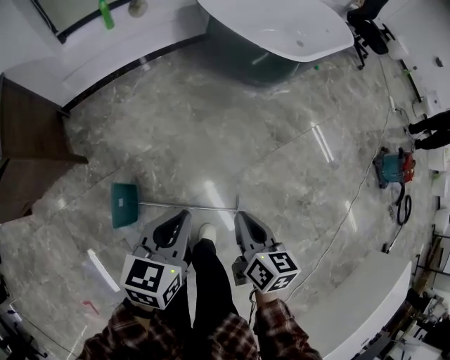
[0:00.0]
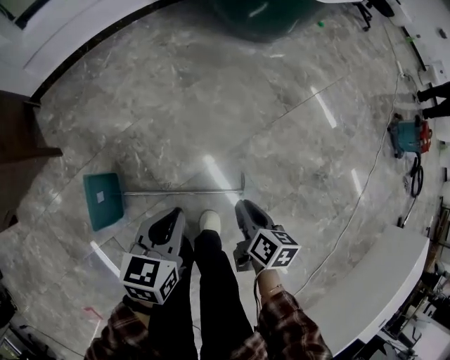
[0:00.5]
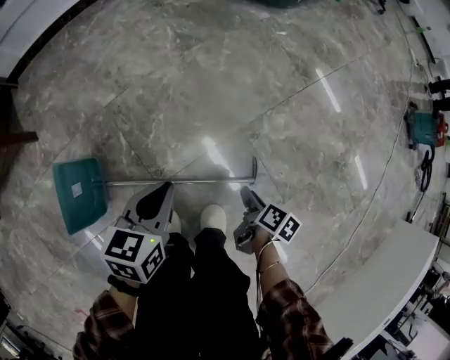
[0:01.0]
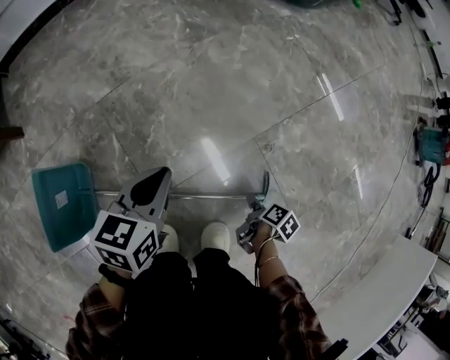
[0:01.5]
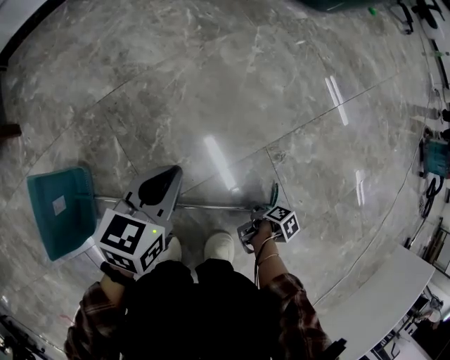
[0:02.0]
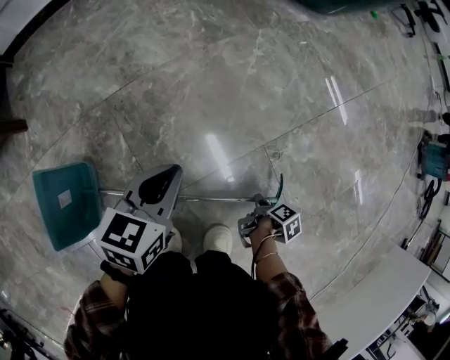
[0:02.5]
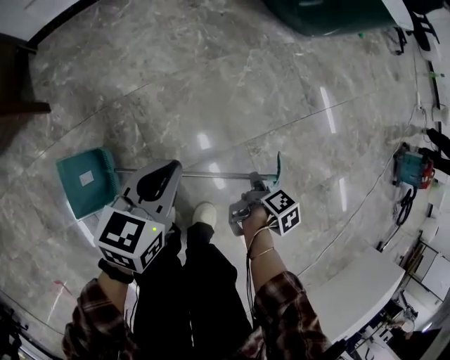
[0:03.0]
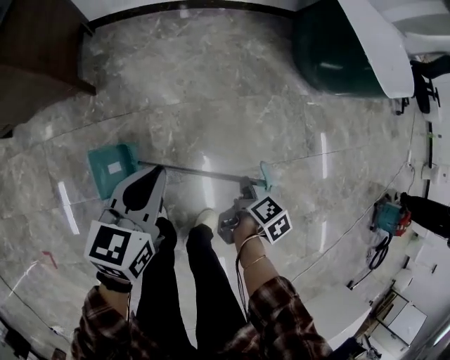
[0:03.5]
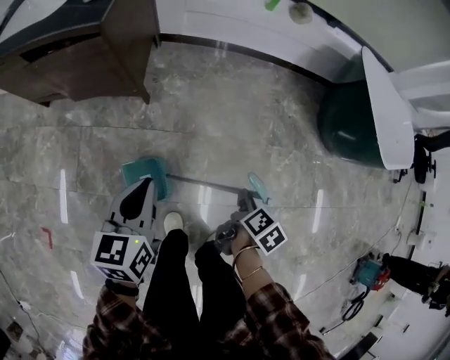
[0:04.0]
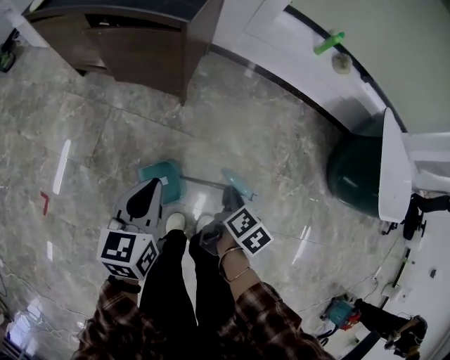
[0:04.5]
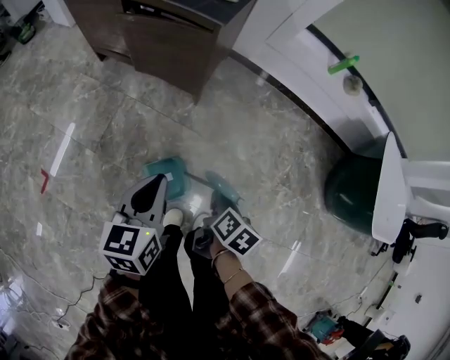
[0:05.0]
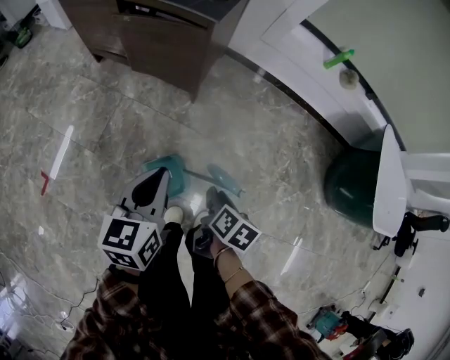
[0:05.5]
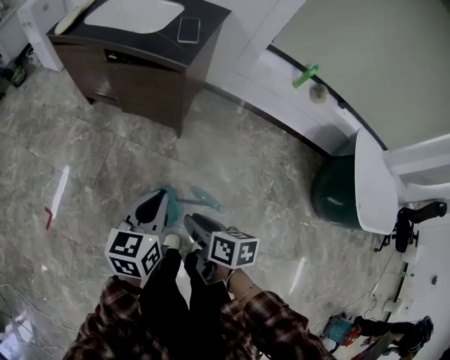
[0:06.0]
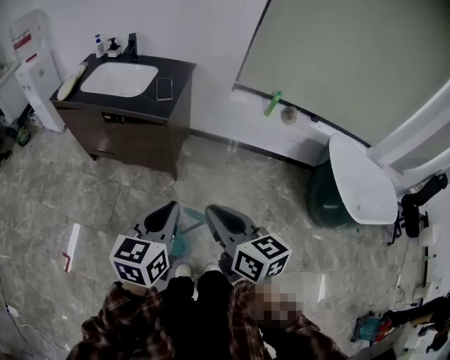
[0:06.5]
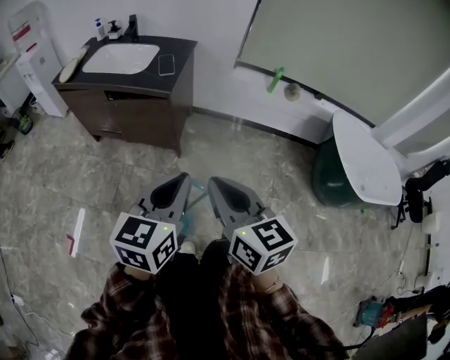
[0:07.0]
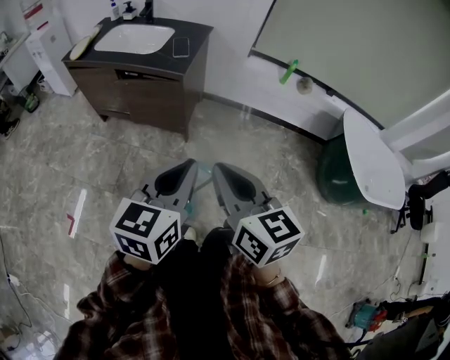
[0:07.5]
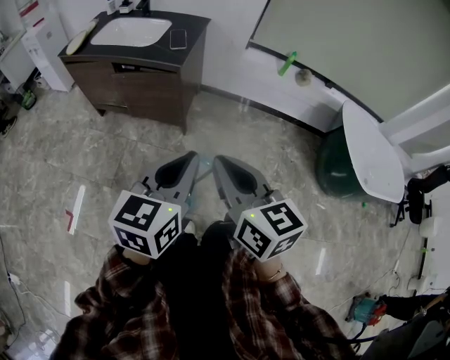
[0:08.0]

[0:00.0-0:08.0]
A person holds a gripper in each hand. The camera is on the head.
0:00.0 to 0:02.0: Both grippers travel together downward, roughly 70 cm. The right gripper tips its fingers downward by some 40 degrees, and opens its fingers.
0:02.0 to 0:04.0: The grippers both shift upward by approximately 50 cm. The right gripper twists approximately 50 degrees counterclockwise, seen from behind; the left gripper turns by about 50 degrees.
0:04.0 to 0:06.0: The left gripper travels upward by about 10 cm. The right gripper ends up approximately 35 cm from where it was, and changes its angle by some 60 degrees.
0:06.0 to 0:08.0: The left gripper goes approximately 25 cm upward and backward; the right gripper travels upward by some 30 cm, rotates approximately 40 degrees, and closes up.

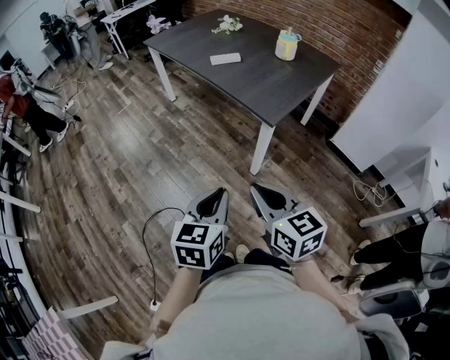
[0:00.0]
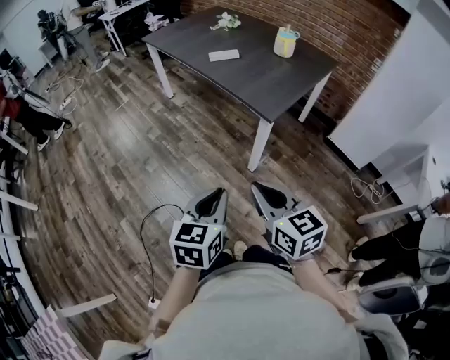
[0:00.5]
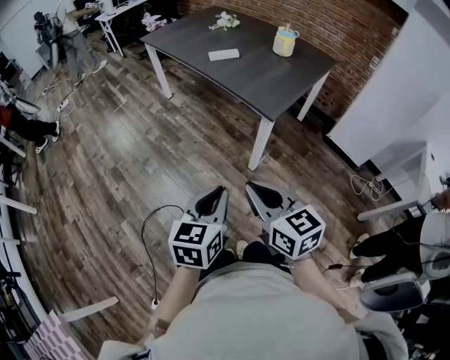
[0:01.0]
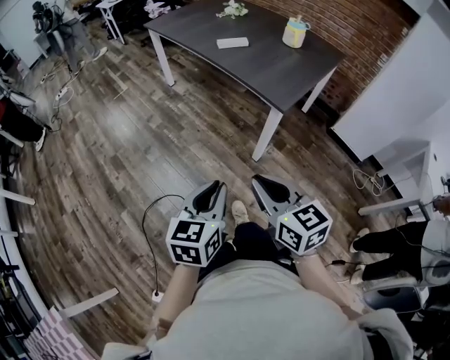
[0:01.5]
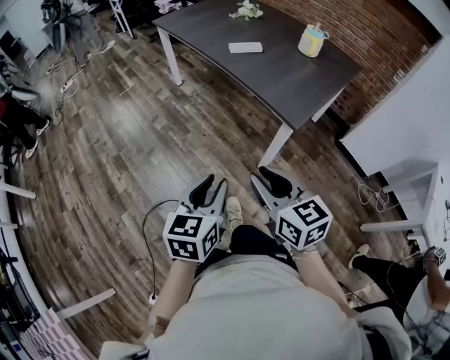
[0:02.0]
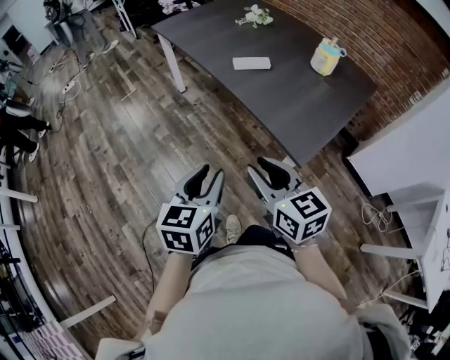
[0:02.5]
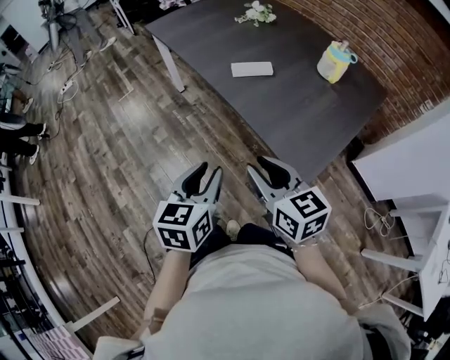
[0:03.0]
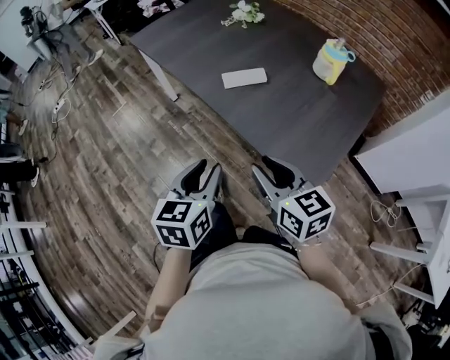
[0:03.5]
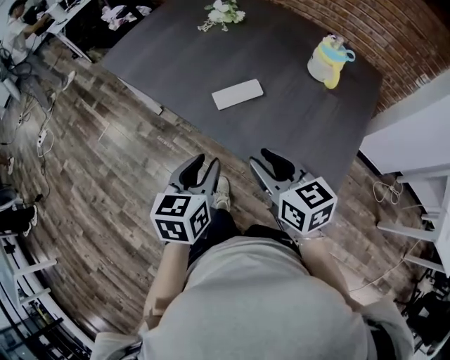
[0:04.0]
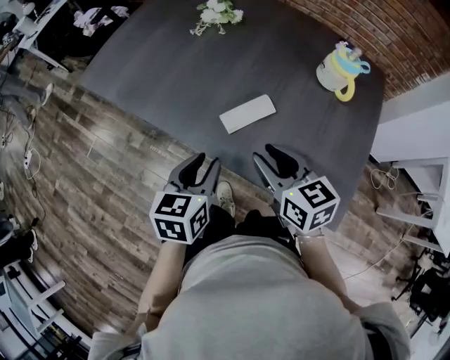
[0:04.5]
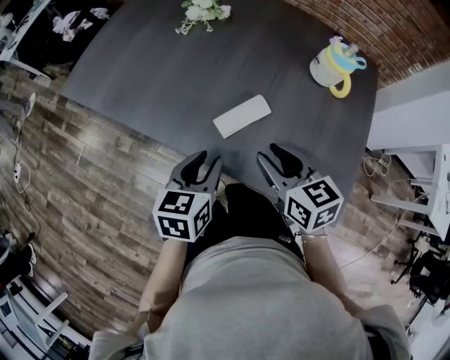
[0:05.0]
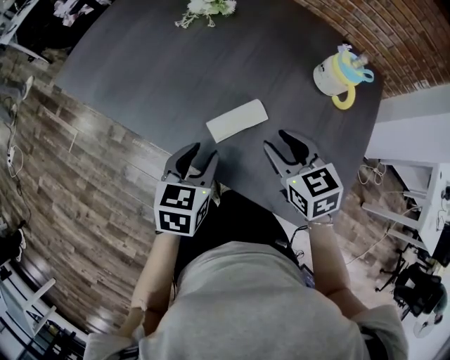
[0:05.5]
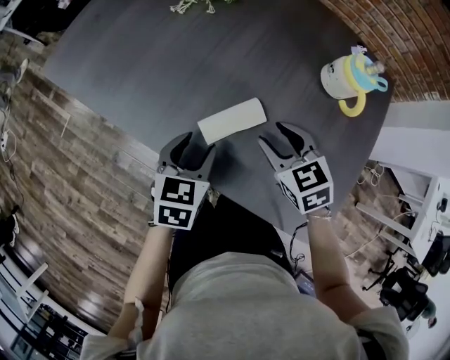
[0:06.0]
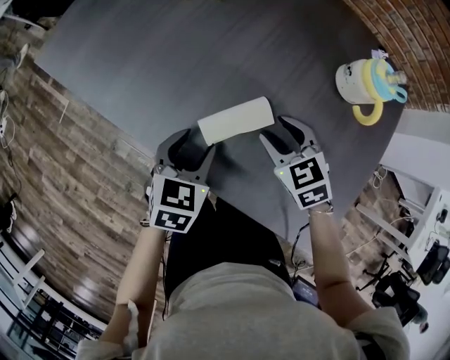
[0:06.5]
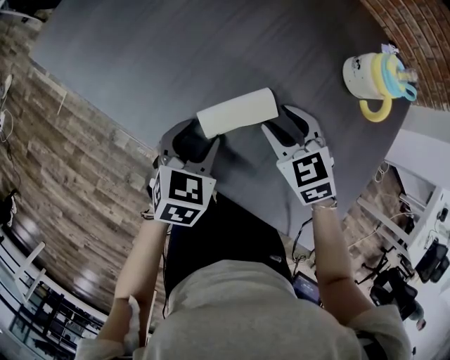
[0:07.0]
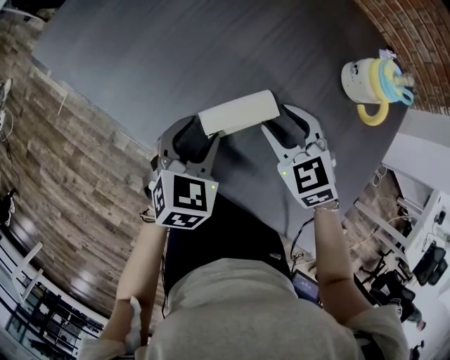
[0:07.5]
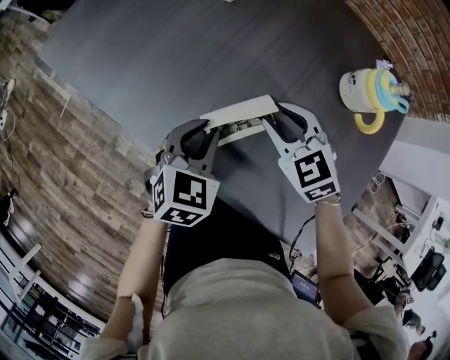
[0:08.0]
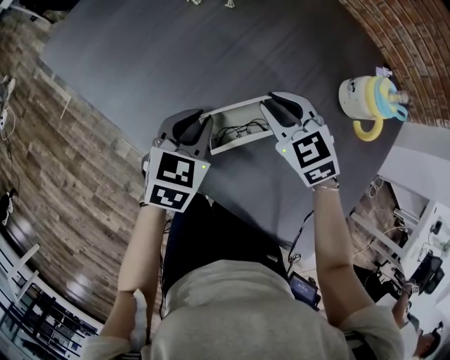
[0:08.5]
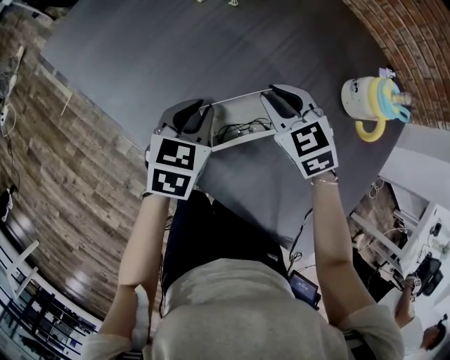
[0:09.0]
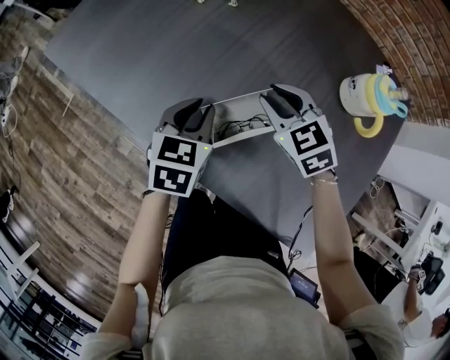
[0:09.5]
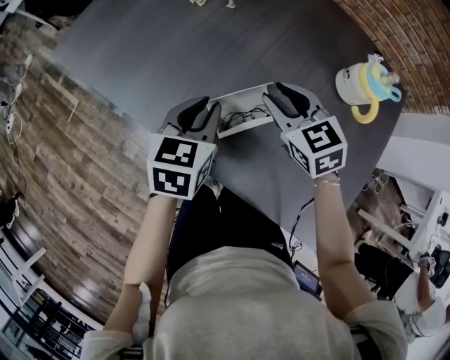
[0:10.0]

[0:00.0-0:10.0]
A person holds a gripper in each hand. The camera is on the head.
0:00.0 to 0:02.0: The two grippers go roughly 10 cm forward and to the left. The right gripper opens up.
0:02.0 to 0:04.0: The pair of grippers is taken forward, approximately 50 cm.
0:04.0 to 0:06.0: The two grippers go about 25 cm forward and downward. The left gripper opens; the right gripper swivels some 30 degrees.
0:06.0 to 0:08.0: The left gripper closes its fingers. The right gripper goes some 5 cm forward.
0:08.0 to 0:10.0: The left gripper ends up approximately 5 cm from where it was, and rotates some 20 degrees.

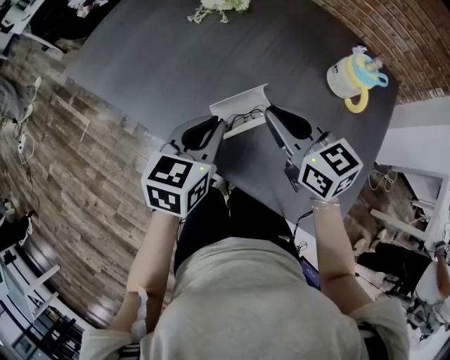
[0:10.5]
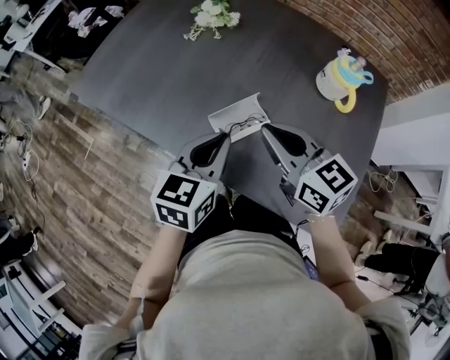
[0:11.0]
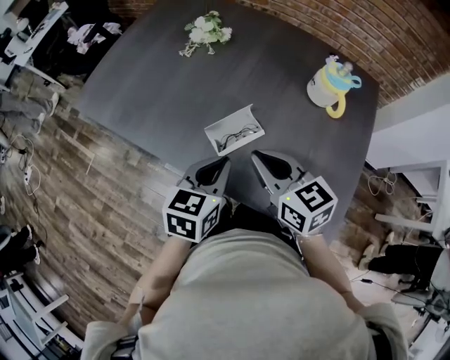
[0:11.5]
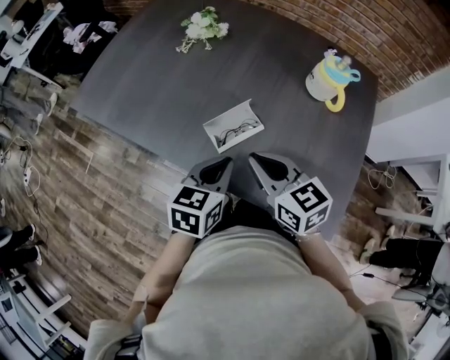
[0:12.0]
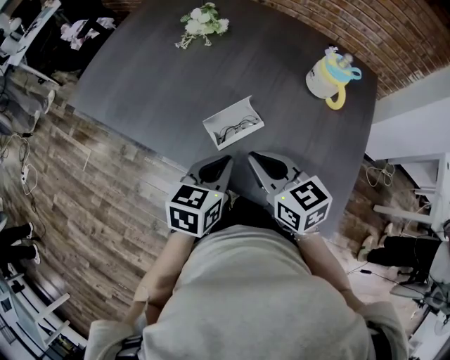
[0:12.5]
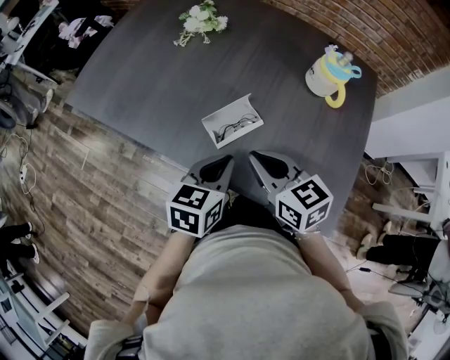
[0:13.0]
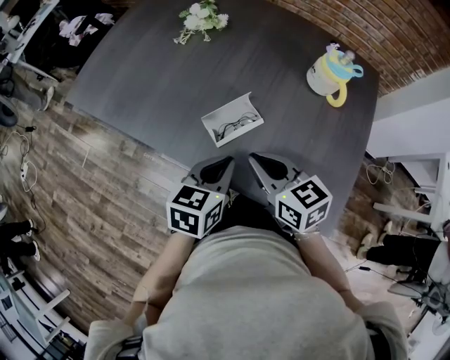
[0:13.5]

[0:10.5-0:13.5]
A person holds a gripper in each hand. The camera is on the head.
0:10.5 to 0:12.0: Both grippers travel together backward, about 5 cm.
0:12.0 to 0:13.5: There are only small adjustments of the grippers.

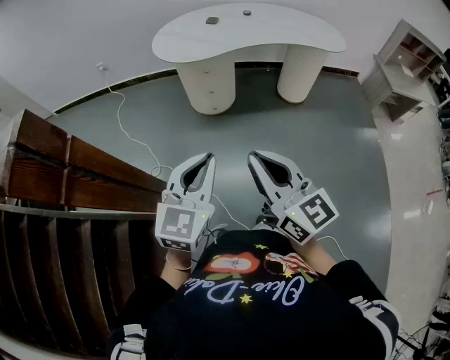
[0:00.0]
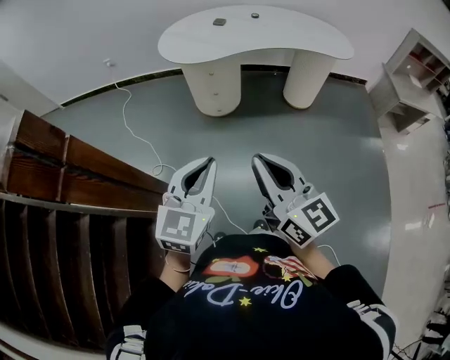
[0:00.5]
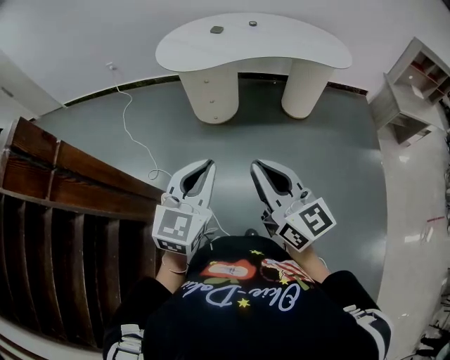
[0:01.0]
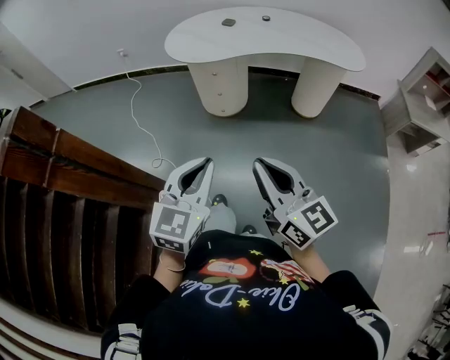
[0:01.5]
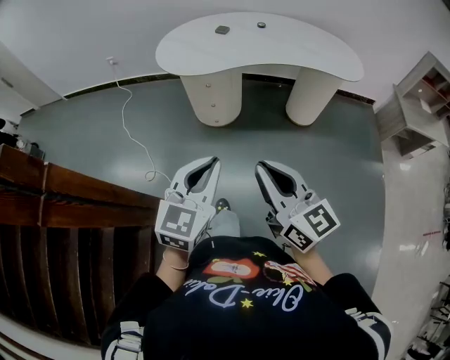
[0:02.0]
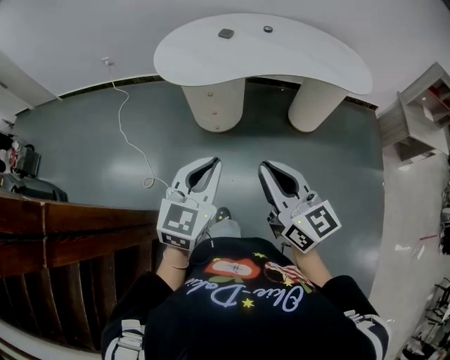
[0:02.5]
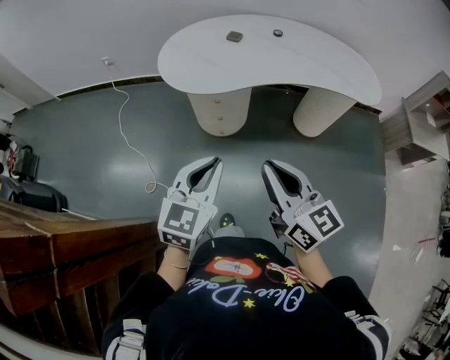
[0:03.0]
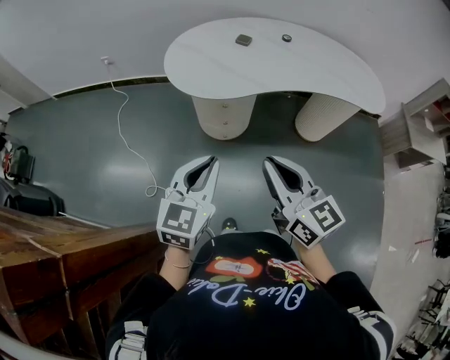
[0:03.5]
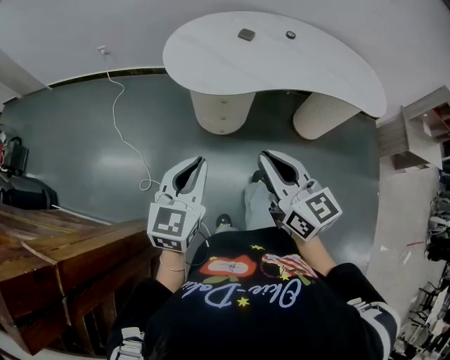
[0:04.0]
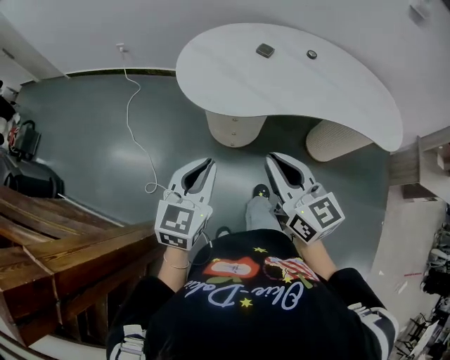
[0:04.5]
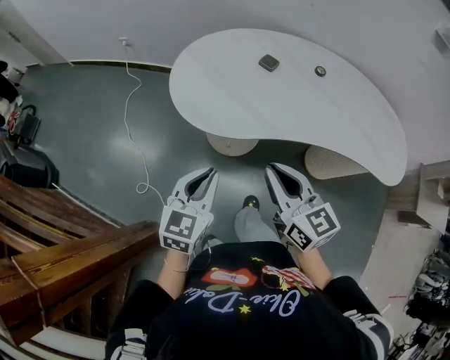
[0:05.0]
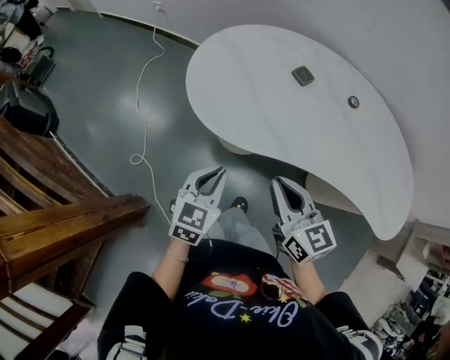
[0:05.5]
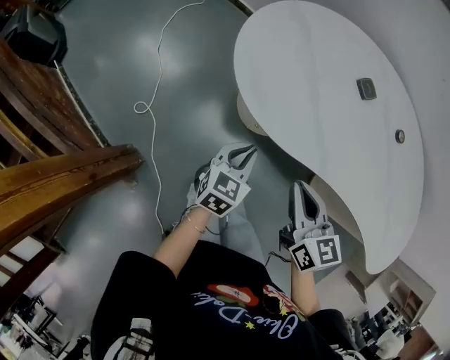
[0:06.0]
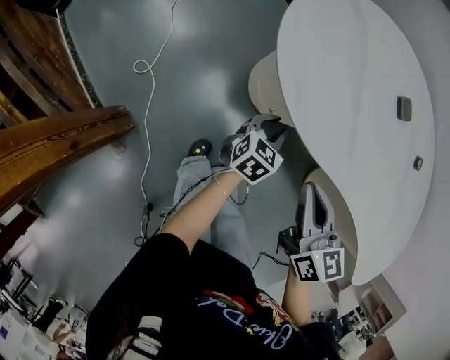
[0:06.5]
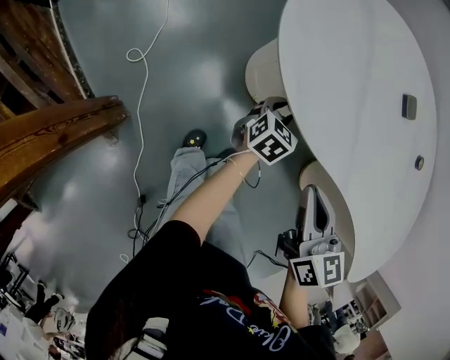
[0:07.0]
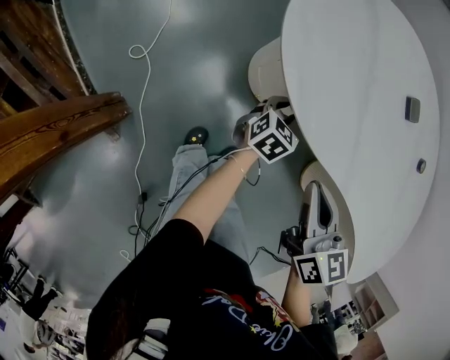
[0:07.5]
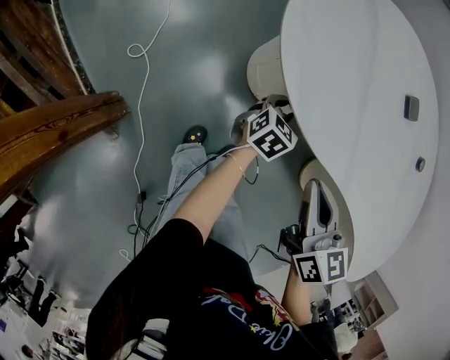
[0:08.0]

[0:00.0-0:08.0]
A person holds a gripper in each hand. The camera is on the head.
0:00.0 to 0:02.0: Both grippers move to the right and forward, roughly 15 cm.
0:02.0 to 0:04.0: The two grippers go roughly 25 cm forward and to the left.
0:04.0 to 0:06.0: The left gripper moves downward, forward and to the right, approximately 40 cm, and rotates some 30 degrees. The right gripper travels forward and downward by about 30 cm, and turns by approximately 30 degrees.
0:06.0 to 0:08.0: The right gripper changes place by approximately 5 cm. Meanwhile the left gripper heads downward and forward, covering some 20 cm, and opens its fingers.
